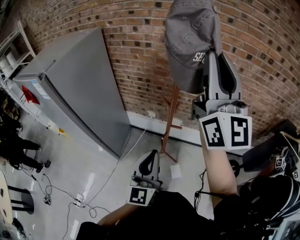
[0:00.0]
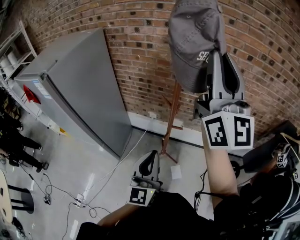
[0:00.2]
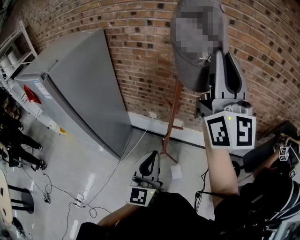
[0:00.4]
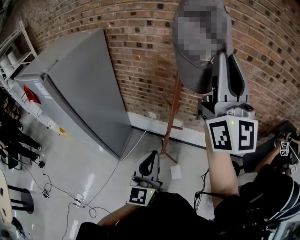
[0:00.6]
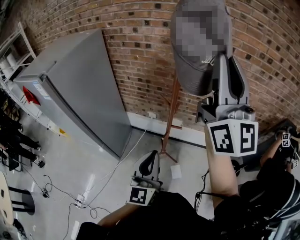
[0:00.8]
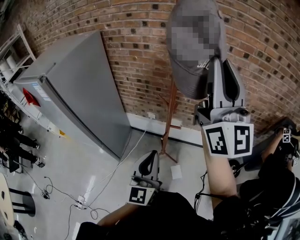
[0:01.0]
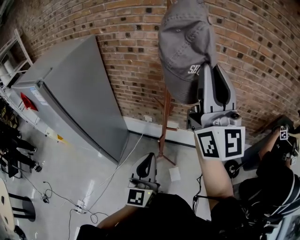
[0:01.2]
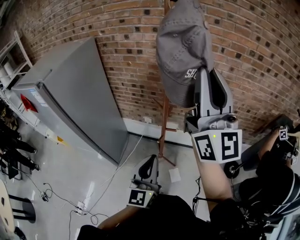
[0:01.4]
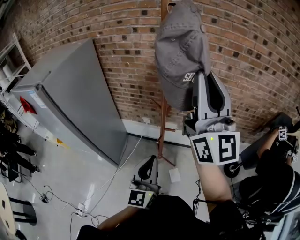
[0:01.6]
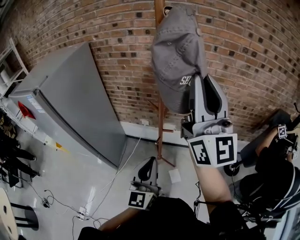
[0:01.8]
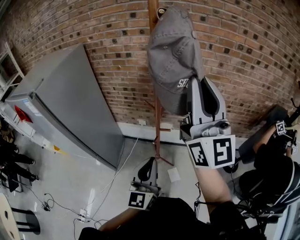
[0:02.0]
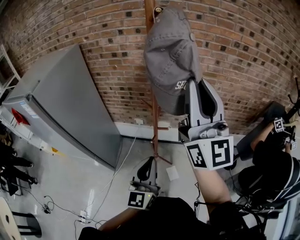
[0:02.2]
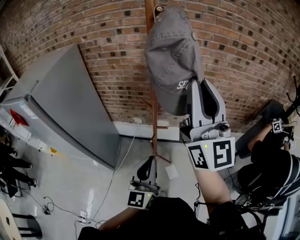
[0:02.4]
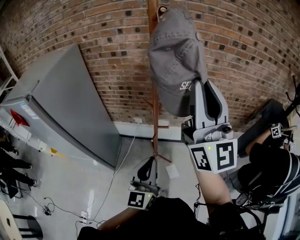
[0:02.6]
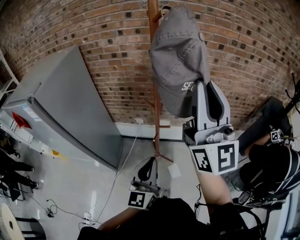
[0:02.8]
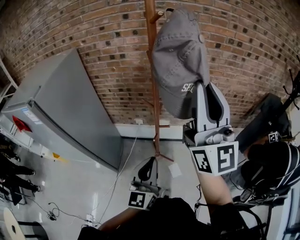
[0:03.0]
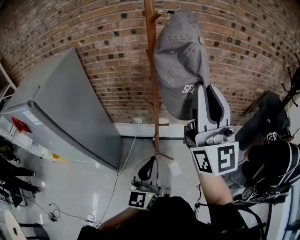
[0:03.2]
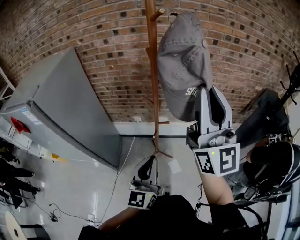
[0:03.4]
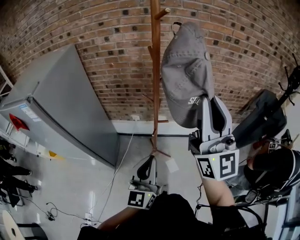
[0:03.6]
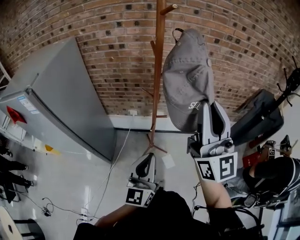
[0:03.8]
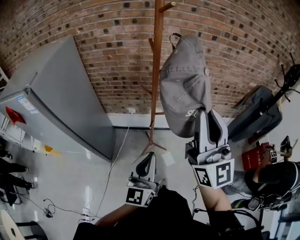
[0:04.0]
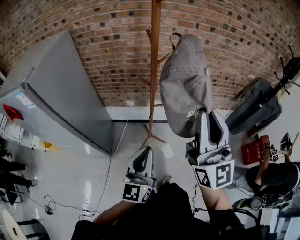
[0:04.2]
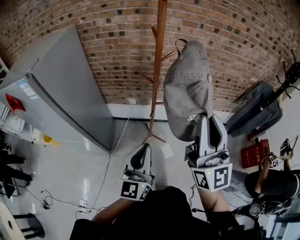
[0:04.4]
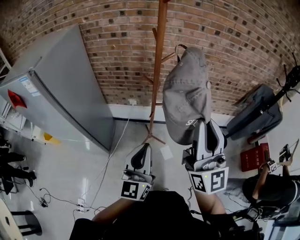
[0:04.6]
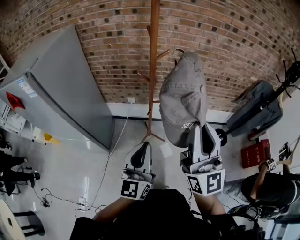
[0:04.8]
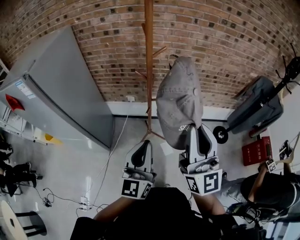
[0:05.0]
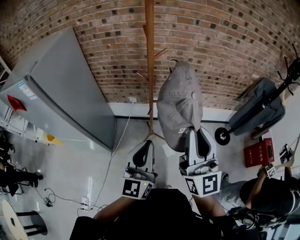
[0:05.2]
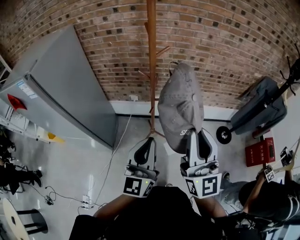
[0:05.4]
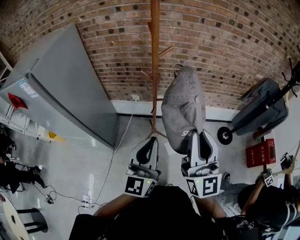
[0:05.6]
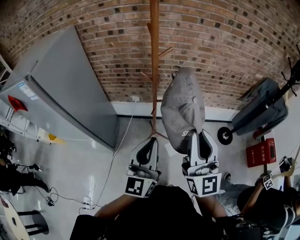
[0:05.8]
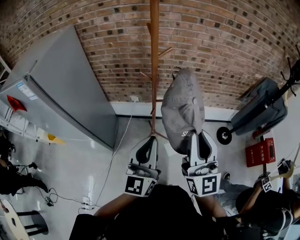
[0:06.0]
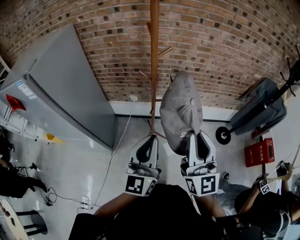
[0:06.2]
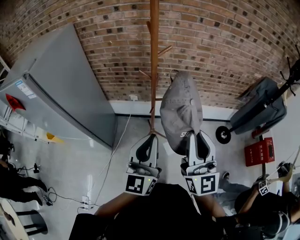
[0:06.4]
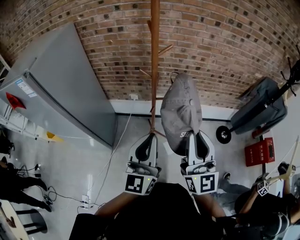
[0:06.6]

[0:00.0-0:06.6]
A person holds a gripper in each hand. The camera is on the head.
0:00.0 to 0:01.6: The right gripper shifts by some 5 cm.
0:01.6 to 0:03.2: The right gripper is displaced backward by approximately 5 cm.
0:03.2 to 0:05.0: The right gripper moves downward and backward, about 20 cm. The left gripper moves backward, approximately 5 cm.
0:05.0 to 0:06.6: The right gripper travels downward by roughly 5 cm.

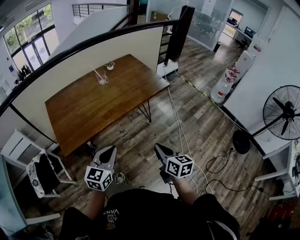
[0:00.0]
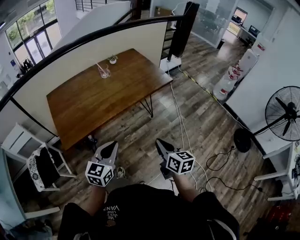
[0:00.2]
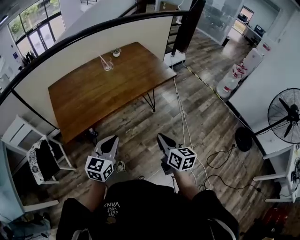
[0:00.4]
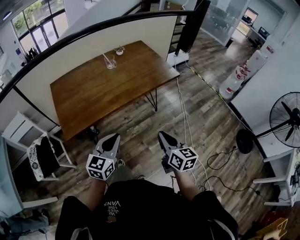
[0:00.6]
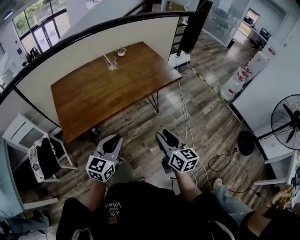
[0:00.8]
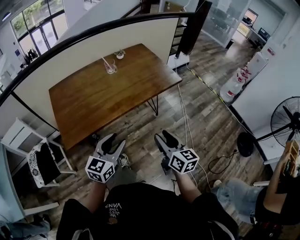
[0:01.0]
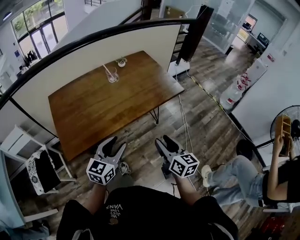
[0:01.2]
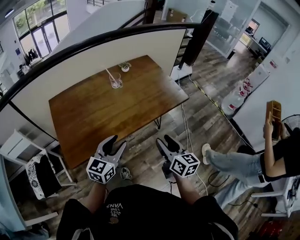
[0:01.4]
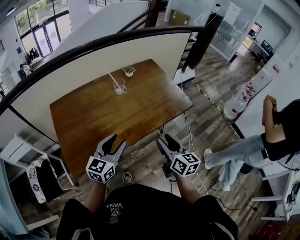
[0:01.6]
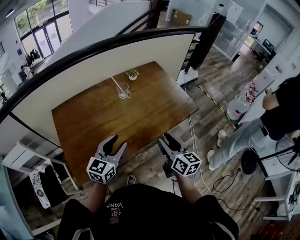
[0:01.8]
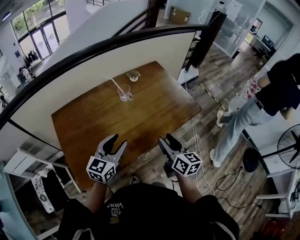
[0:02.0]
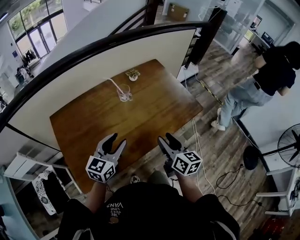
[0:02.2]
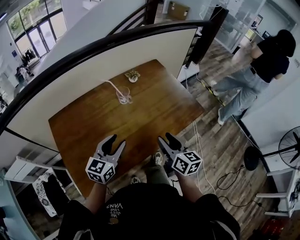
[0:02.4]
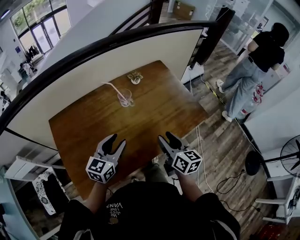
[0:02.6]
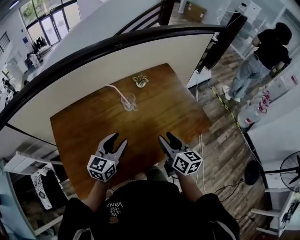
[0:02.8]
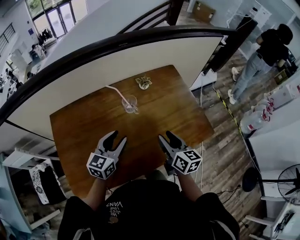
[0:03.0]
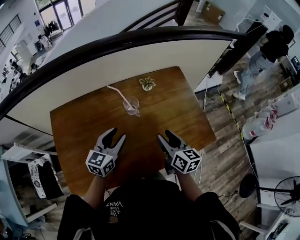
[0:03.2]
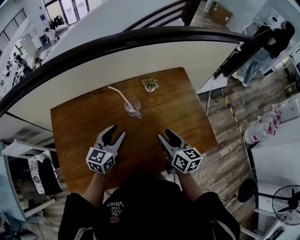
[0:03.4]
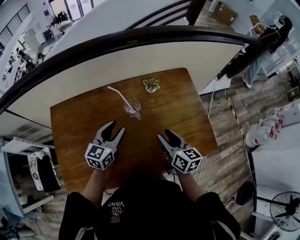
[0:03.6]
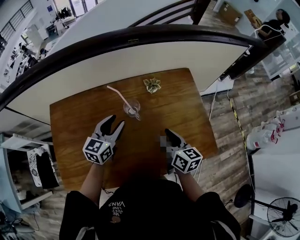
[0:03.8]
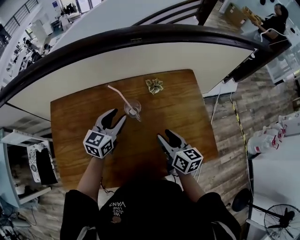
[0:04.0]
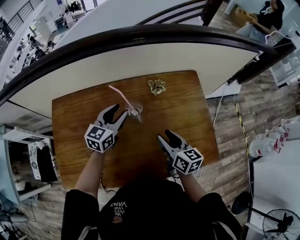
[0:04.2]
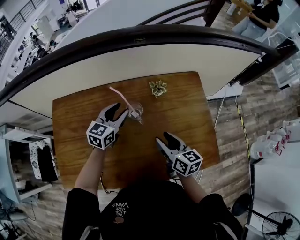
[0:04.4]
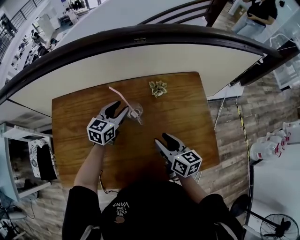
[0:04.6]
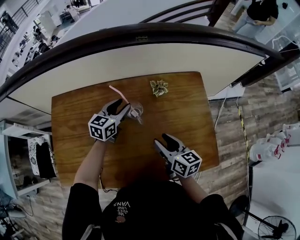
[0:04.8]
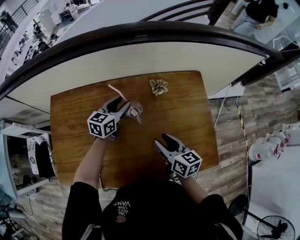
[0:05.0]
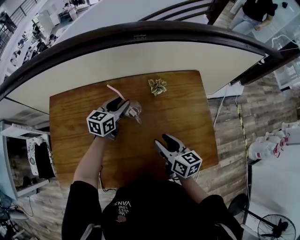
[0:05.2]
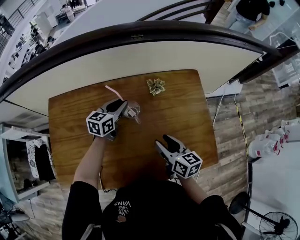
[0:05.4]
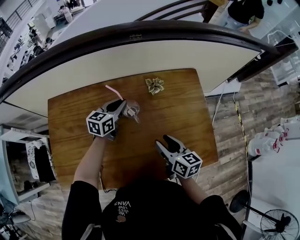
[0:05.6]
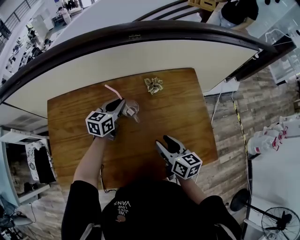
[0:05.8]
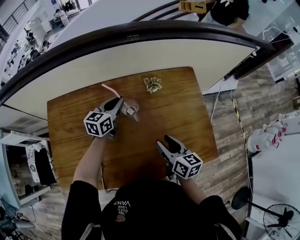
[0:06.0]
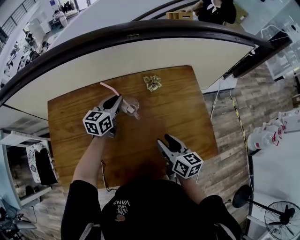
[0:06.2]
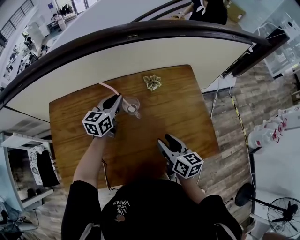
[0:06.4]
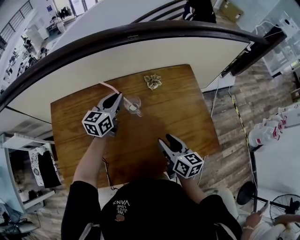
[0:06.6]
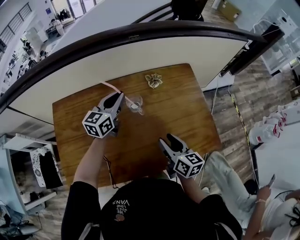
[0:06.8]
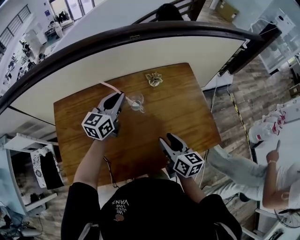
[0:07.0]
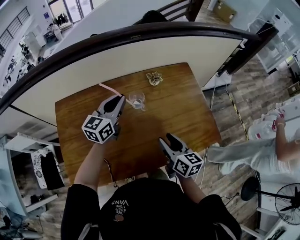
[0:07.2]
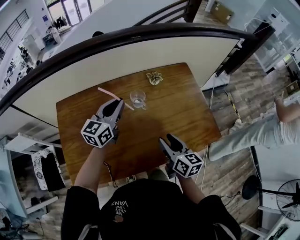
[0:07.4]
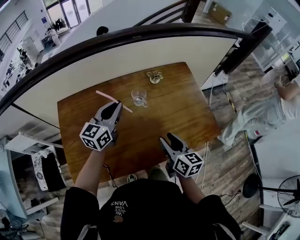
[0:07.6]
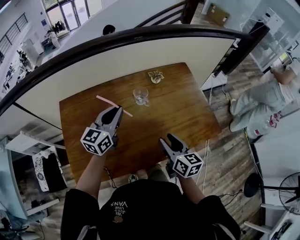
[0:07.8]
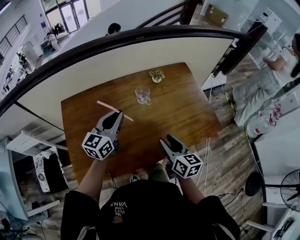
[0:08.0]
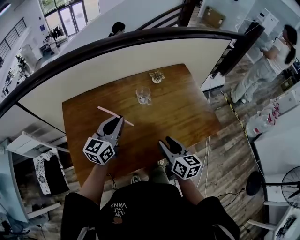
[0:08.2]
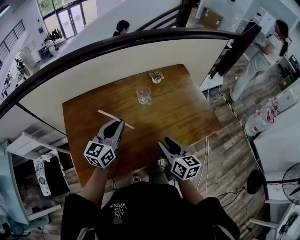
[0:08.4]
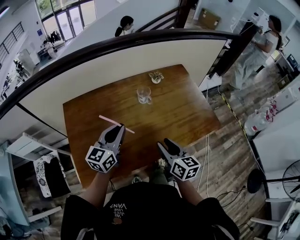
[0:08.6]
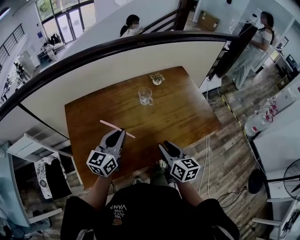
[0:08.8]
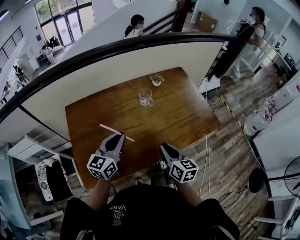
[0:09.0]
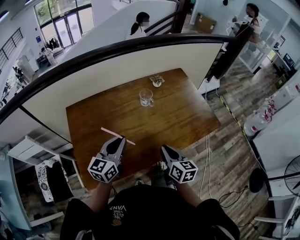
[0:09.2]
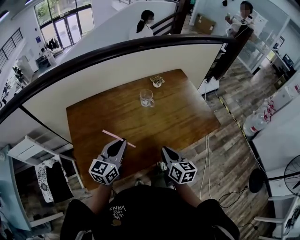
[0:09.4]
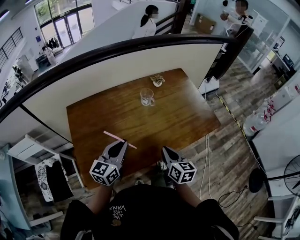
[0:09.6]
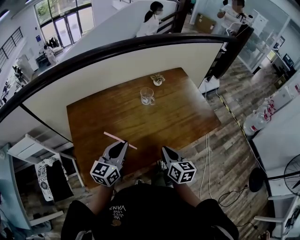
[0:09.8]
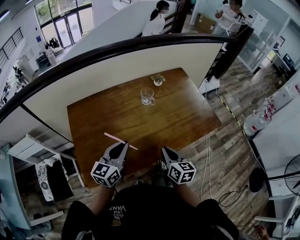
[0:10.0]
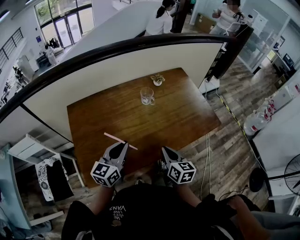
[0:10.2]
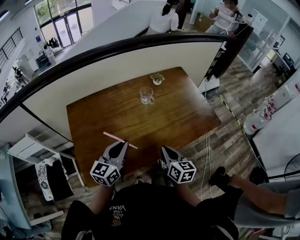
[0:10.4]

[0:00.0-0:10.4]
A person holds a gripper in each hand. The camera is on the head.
0:00.0 to 0:01.4: Both grippers move forward, some 15 cm. The left gripper opens up; the right gripper opens.
0:01.4 to 0:03.0: The grippers both shift forward by approximately 30 cm.
0:03.0 to 0:04.4: The right gripper goes about 10 cm forward and downward, and rotates approximately 20 degrees. Meanwhile the left gripper travels forward by roughly 20 cm.
0:04.4 to 0:06.0: The left gripper closes its fingers.
0:06.0 to 0:07.4: The left gripper heads upward and backward, covering about 15 cm, while the right gripper shifts about 10 cm backward.
0:07.4 to 0:09.0: The right gripper travels backward and to the left by some 15 cm, and closes up; the left gripper travels backward by about 20 cm.
0:09.0 to 0:10.4: There are only small adjustments of the grippers.

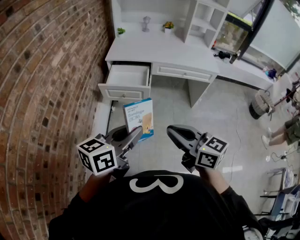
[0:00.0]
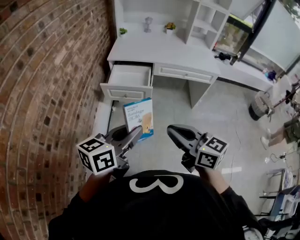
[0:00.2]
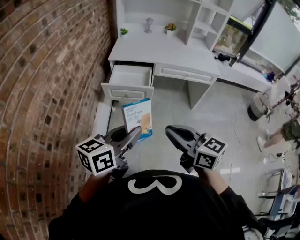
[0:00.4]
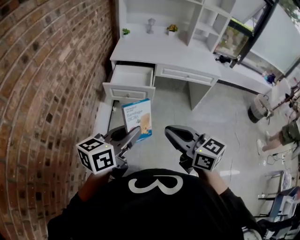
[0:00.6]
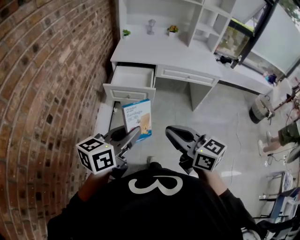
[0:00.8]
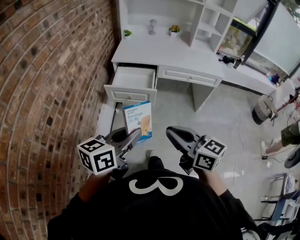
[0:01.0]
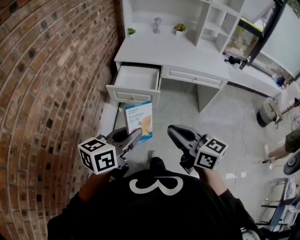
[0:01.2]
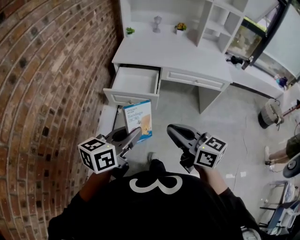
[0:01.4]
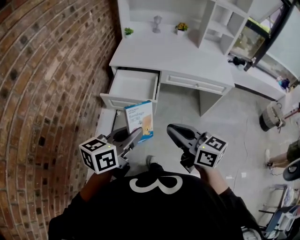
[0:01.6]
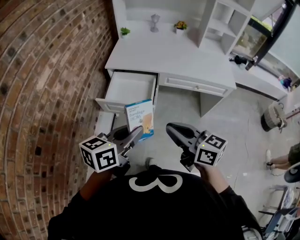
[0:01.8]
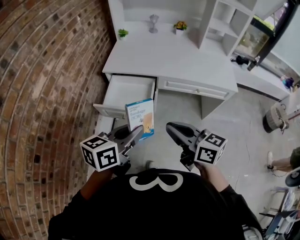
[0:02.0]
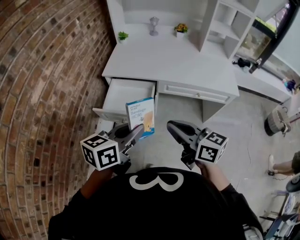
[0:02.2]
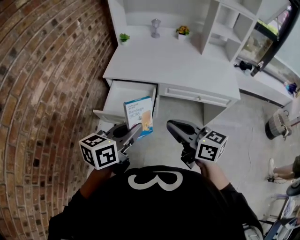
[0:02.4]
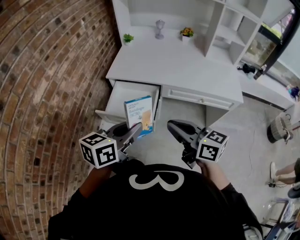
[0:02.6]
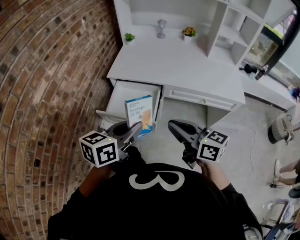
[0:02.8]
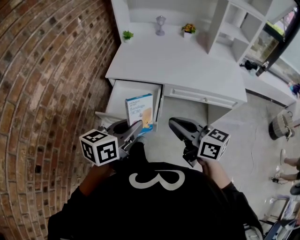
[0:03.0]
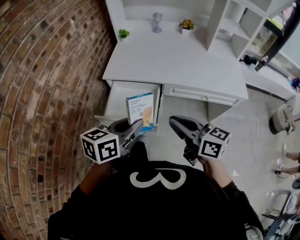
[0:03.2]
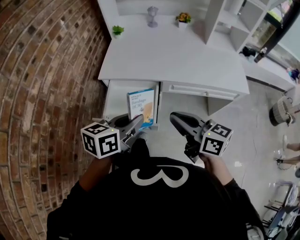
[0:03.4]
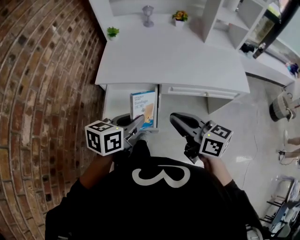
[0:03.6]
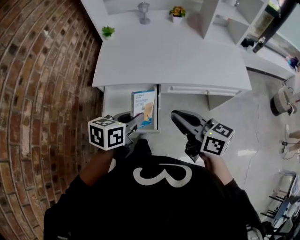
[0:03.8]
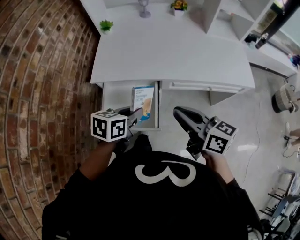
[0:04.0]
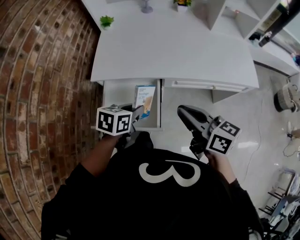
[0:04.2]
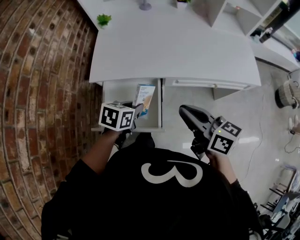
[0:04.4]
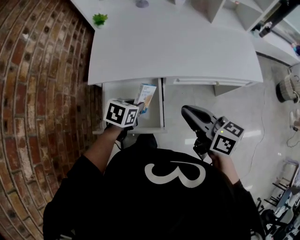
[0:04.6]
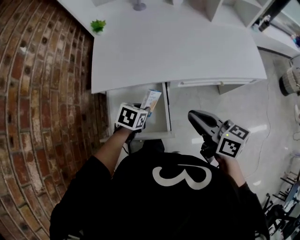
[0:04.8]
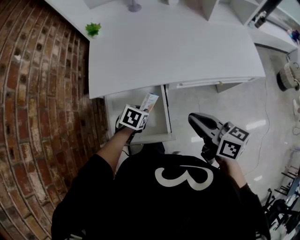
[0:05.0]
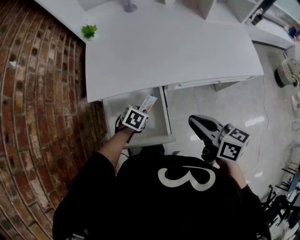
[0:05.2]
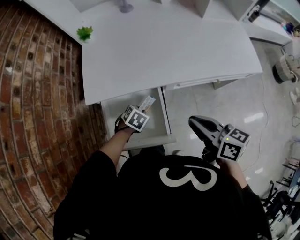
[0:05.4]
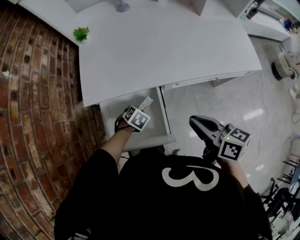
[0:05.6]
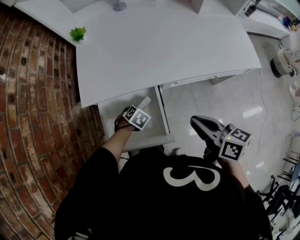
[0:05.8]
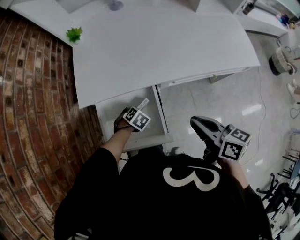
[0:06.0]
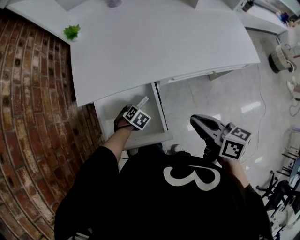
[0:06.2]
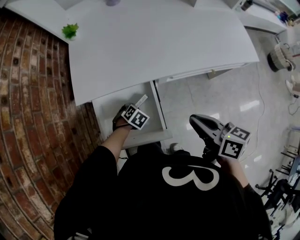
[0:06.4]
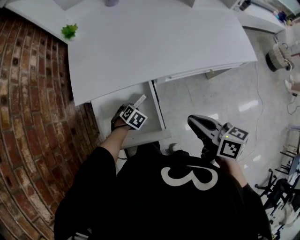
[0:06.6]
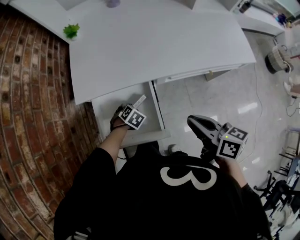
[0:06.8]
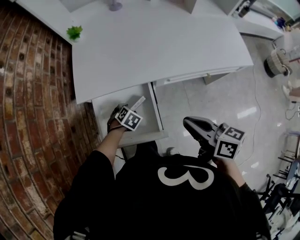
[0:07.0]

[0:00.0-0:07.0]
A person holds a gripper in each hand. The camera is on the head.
0:00.0 to 0:01.4: Both grippers travel together forward, approximately 10 cm.
0:01.4 to 0:02.8: The grippers both shift forward by about 20 cm.
0:02.8 to 0:04.2: The right gripper travels forward by roughly 15 cm, while the left gripper heads forward and downward, covering some 25 cm, and swivels about 30 degrees.
0:04.2 to 0:05.6: The right gripper travels downward by approximately 5 cm. Meanwhile the left gripper heads downward, covering roughly 20 cm, and points its fingers roughly 30 degrees further downward.
0:05.6 to 0:07.0: The left gripper opens.
